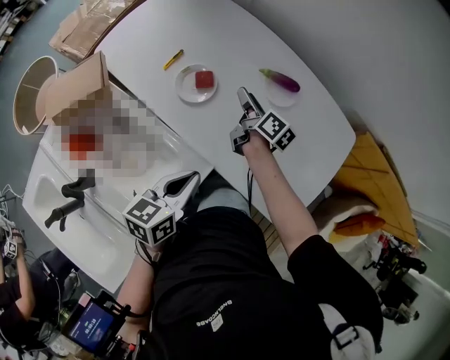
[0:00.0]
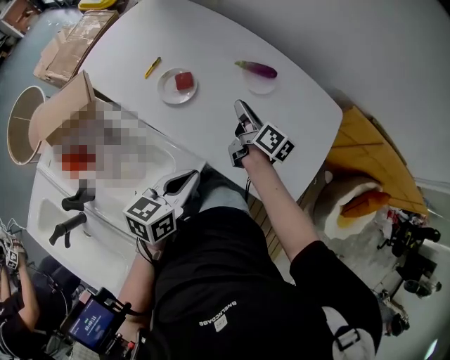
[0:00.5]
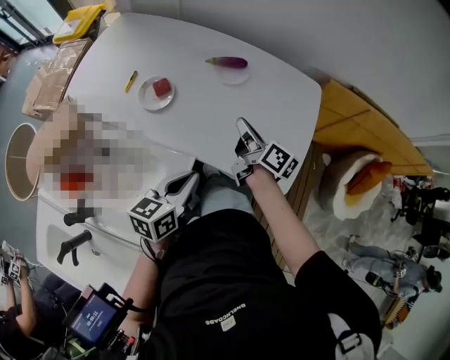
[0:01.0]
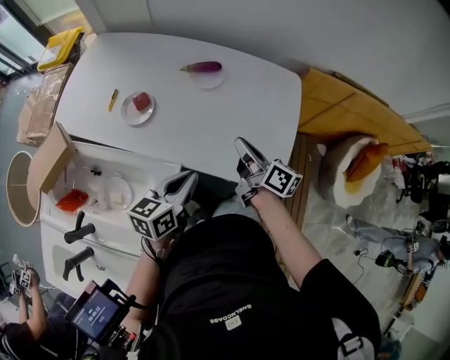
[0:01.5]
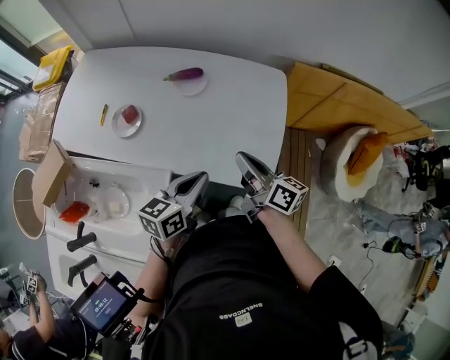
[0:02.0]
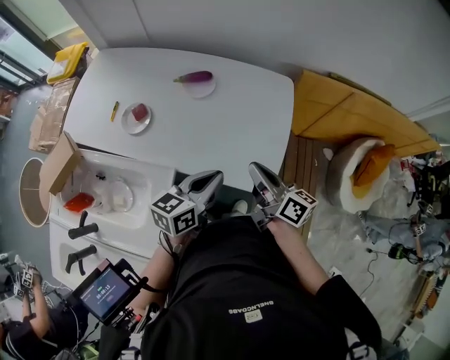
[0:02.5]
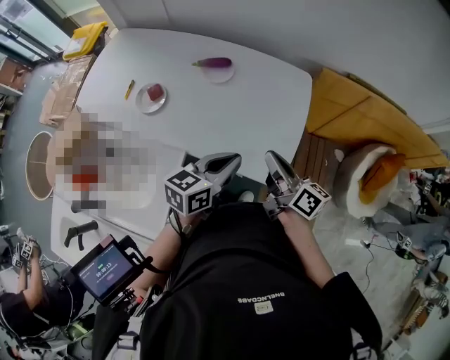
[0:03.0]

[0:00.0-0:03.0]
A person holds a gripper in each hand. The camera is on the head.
0:00.0 to 0:01.5: The left gripper moves approximately 10 cm, and turns by some 20 degrees.
0:01.5 to 0:03.0: The left gripper changes place by some 15 cm.

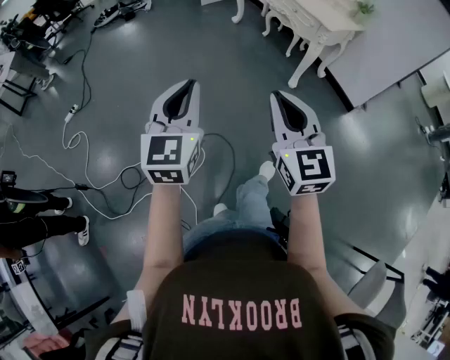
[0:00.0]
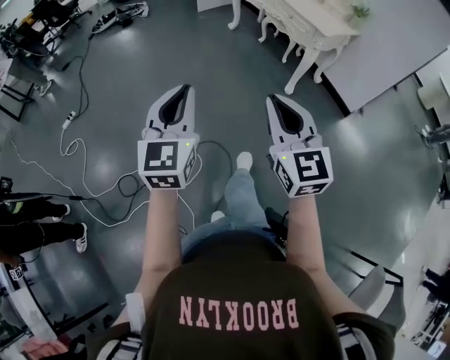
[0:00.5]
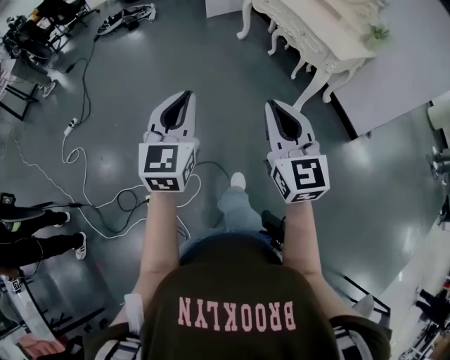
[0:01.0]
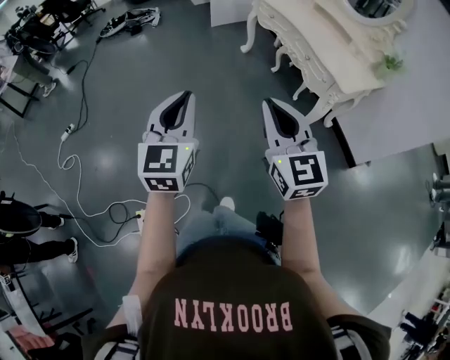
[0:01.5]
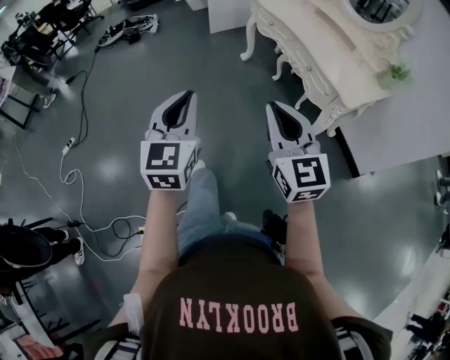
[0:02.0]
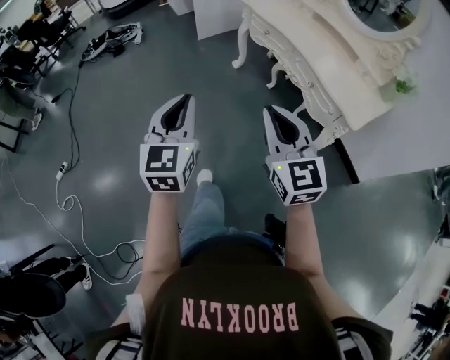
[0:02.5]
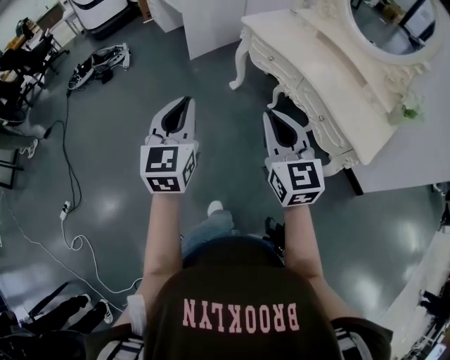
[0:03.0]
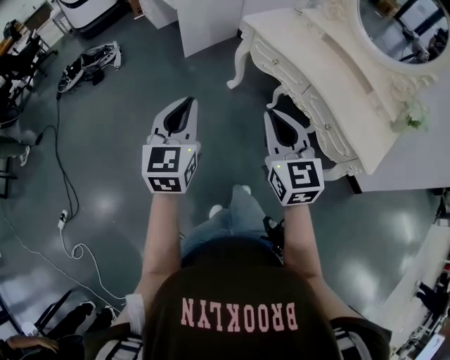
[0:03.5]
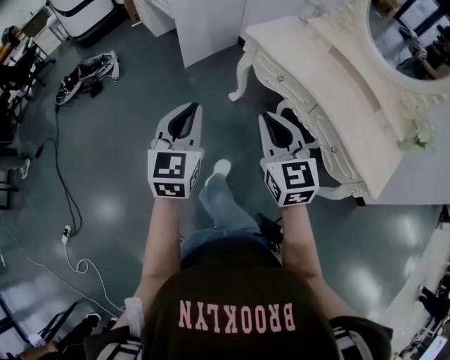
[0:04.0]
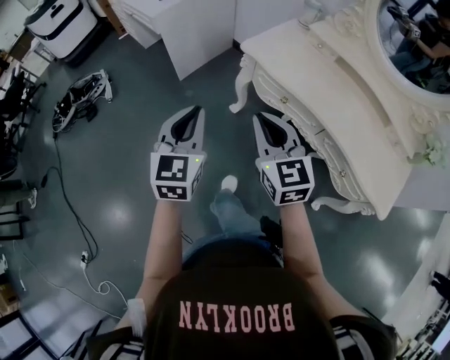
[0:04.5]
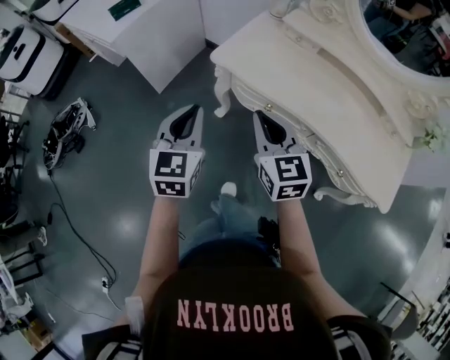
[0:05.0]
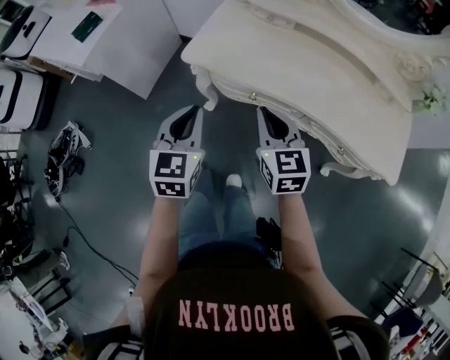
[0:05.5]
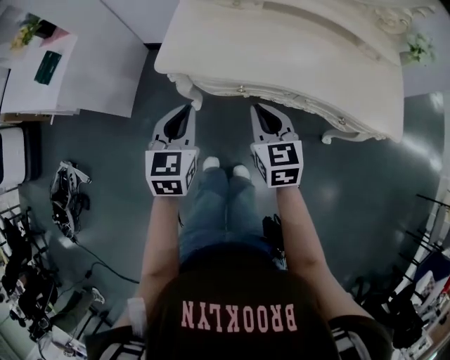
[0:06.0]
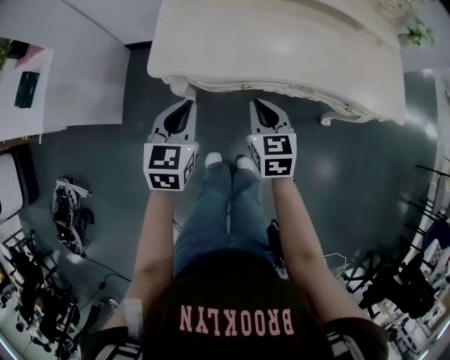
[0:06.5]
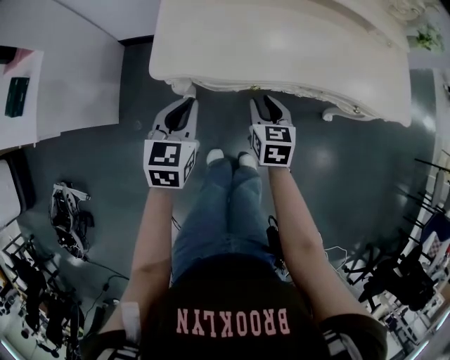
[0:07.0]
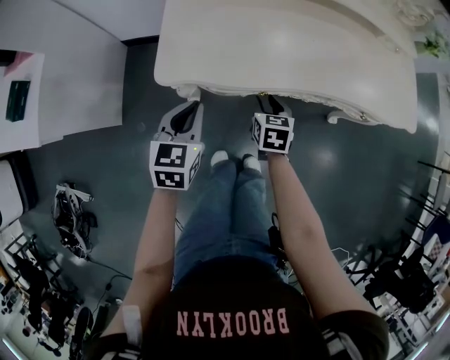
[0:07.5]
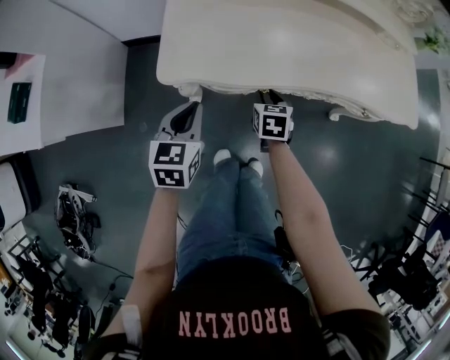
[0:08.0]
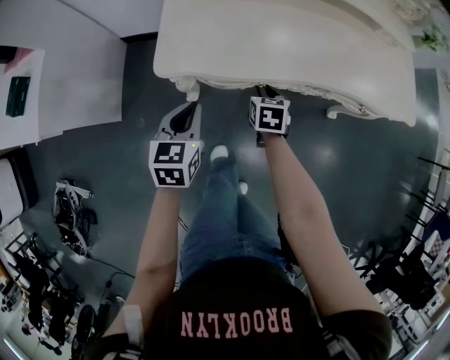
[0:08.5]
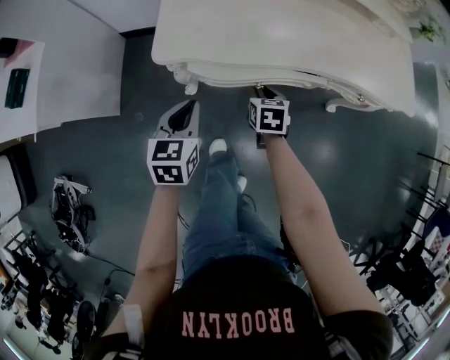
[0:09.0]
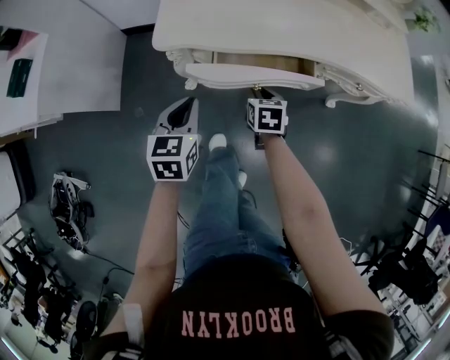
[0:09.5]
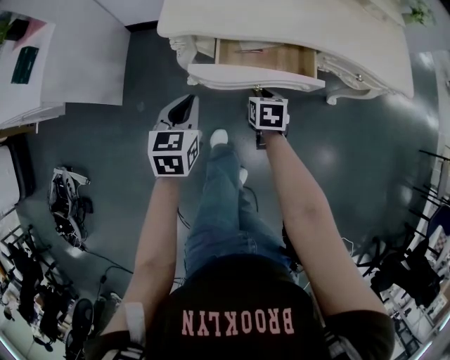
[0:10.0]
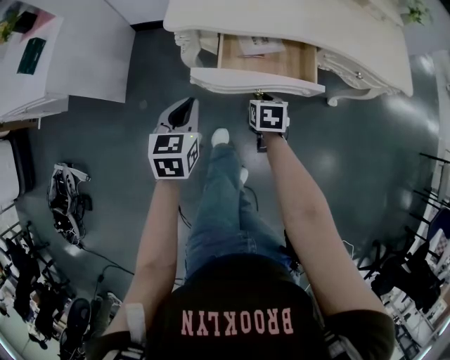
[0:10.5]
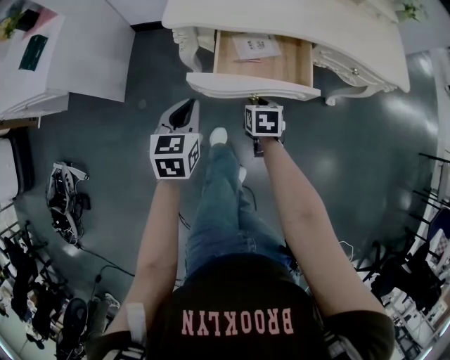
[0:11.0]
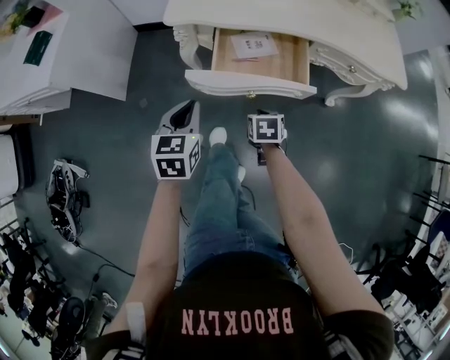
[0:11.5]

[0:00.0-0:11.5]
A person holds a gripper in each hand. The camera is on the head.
0:00.0 to 0:02.0: The two grippers travel together, forward, about 40 cm.
0:02.0 to 0:04.0: The two grippers travel together, forward, roughly 60 cm.
0:04.0 to 0:06.0: The left gripper changes place by some 40 cm, and turns by some 40 degrees. The right gripper ends up some 35 cm from where it was, and turns by some 50 degrees.
0:06.0 to 0:07.5: The left gripper shifts roughly 15 cm downward, forward and to the left. Meanwhile the right gripper is displaced downward and forward by roughly 20 cm, turns by approximately 30 degrees, and opens its fingers.
0:07.5 to 0:09.5: Both grippers travel together backward, about 10 cm.
0:09.5 to 0:11.5: Both grippers travel together backward, roughly 15 cm. The right gripper closes its fingers.

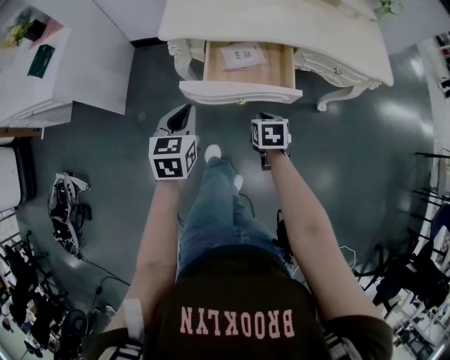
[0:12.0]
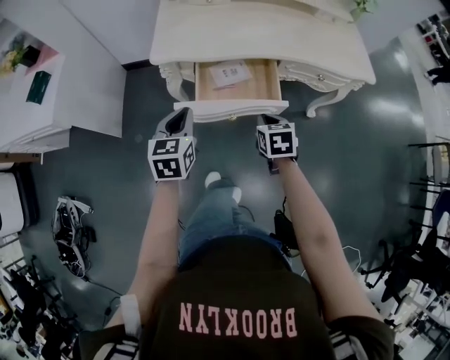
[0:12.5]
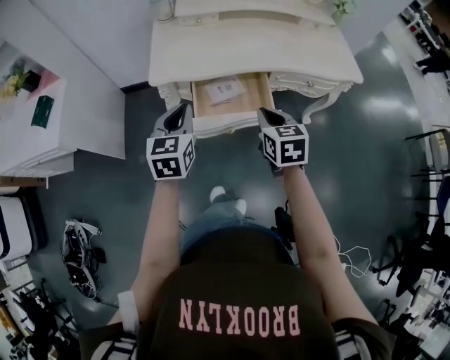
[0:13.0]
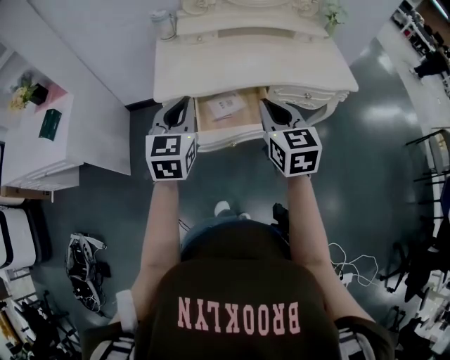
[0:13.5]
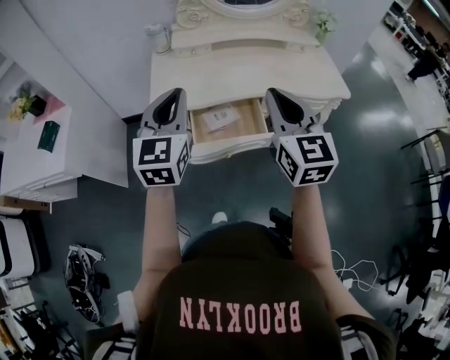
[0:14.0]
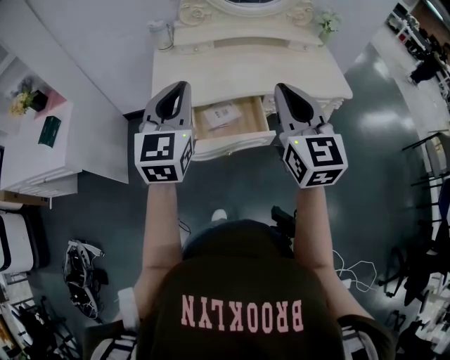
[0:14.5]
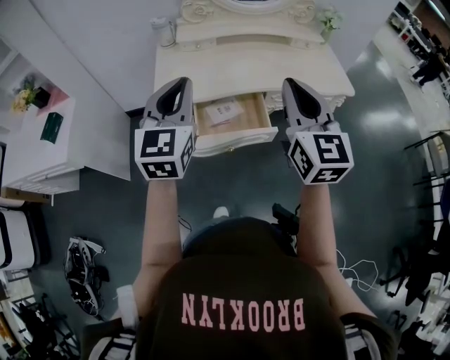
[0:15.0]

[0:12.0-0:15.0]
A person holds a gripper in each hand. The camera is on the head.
0:12.0 to 0:13.5: The left gripper is displaced upward and forward by approximately 20 cm, and turns by some 20 degrees. The right gripper heads upward, covering some 30 cm, and angles its fingers upward, by roughly 40 degrees.
0:13.5 to 0:15.0: The two grippers go approximately 10 cm upward. The right gripper rotates about 20 degrees.

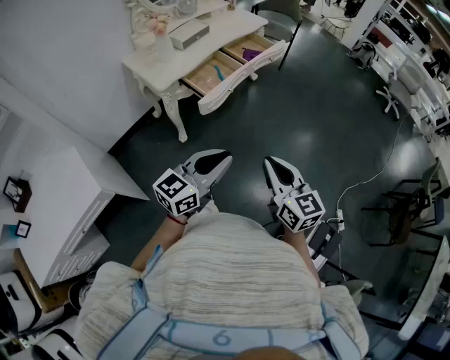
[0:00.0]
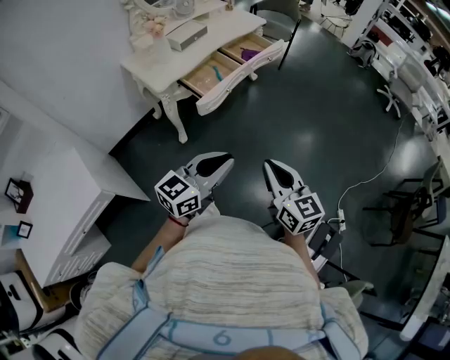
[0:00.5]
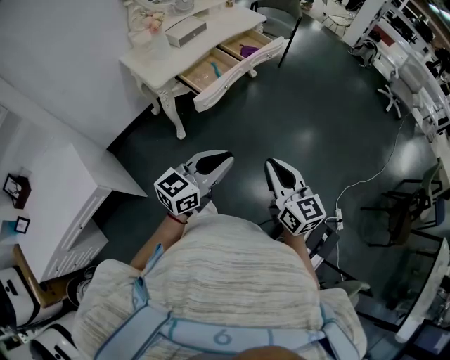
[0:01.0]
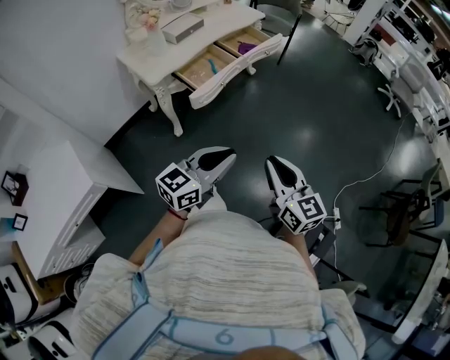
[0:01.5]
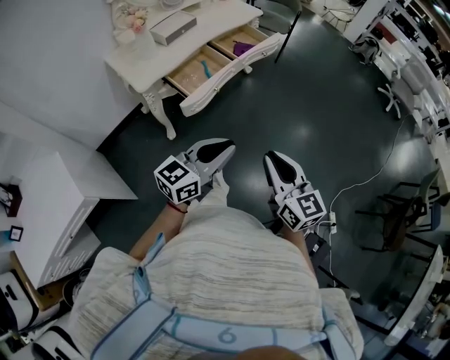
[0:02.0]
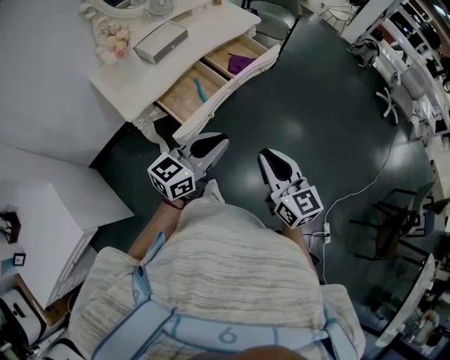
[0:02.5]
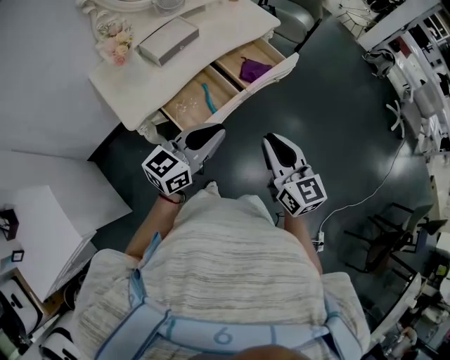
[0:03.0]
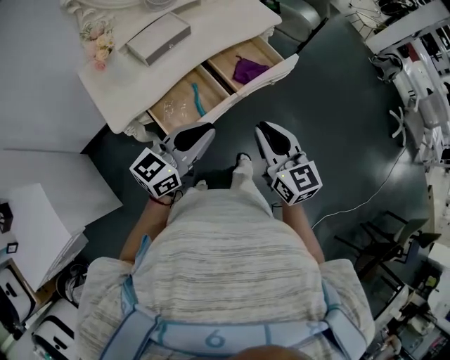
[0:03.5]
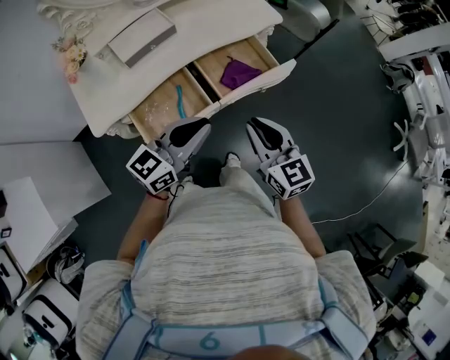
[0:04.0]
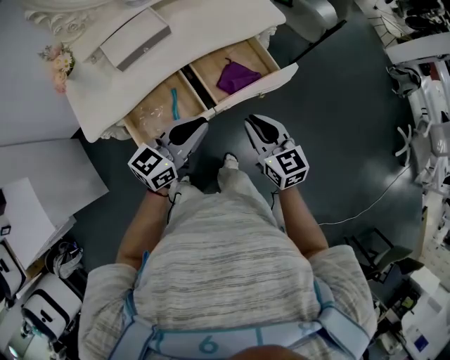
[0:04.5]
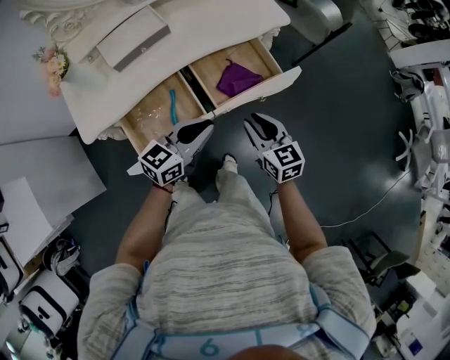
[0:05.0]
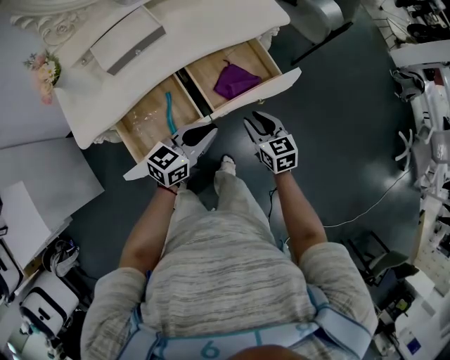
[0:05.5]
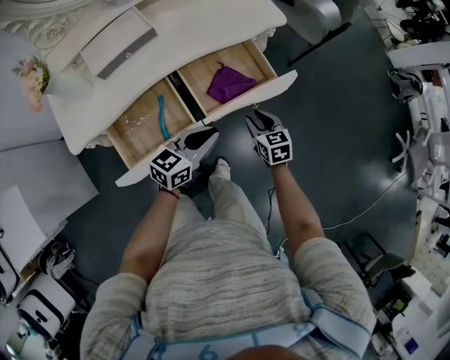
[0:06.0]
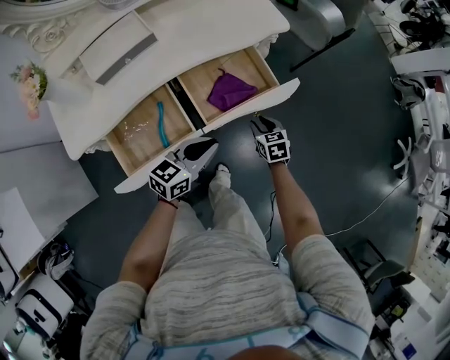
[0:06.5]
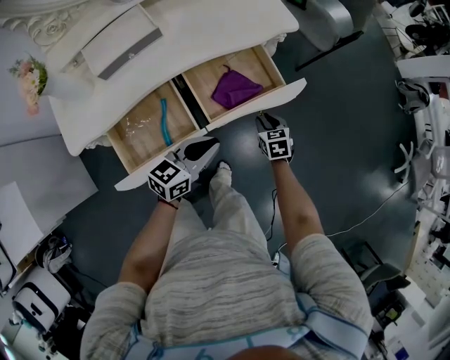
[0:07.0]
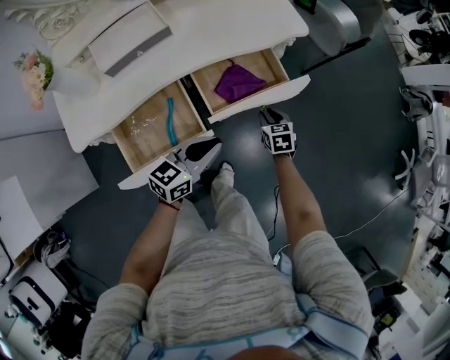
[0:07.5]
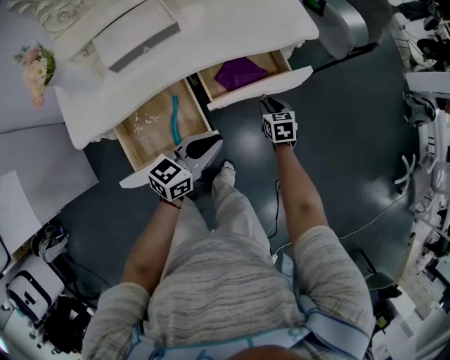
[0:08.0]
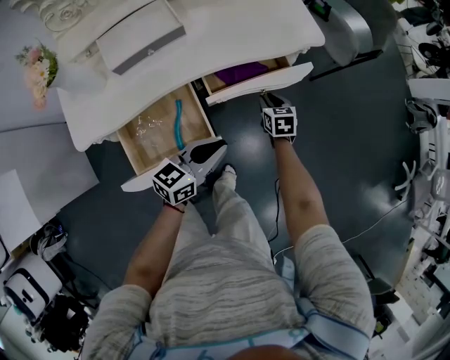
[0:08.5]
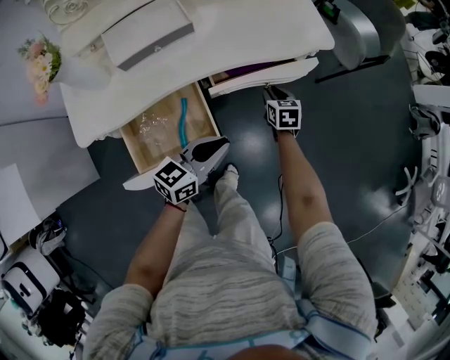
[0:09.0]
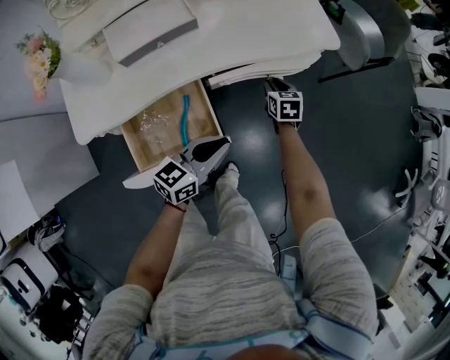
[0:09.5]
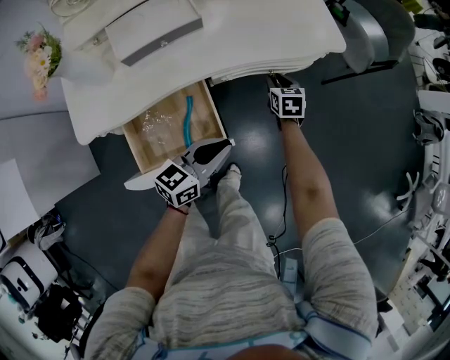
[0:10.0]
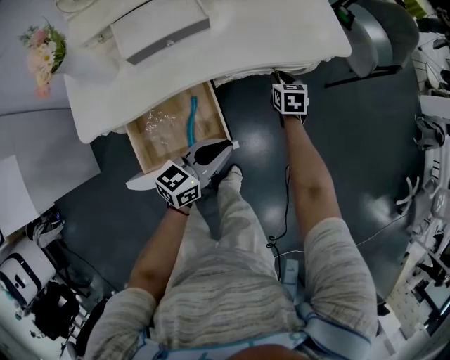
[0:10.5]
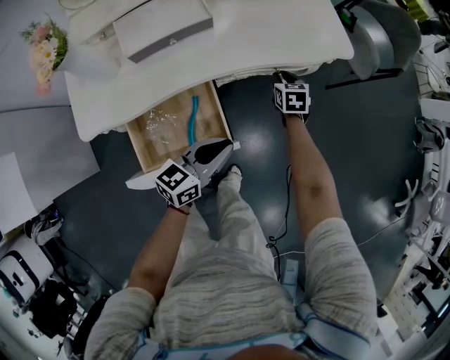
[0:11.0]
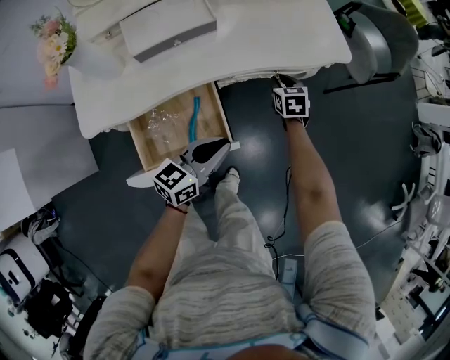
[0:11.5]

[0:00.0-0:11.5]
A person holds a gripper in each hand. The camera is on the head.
0:00.0 to 0:02.0: The grippers both shift forward and to the right by some 15 cm.
0:02.0 to 0:04.0: The two grippers travel together, forward, approximately 50 cm. The right gripper turns by some 20 degrees.
0:04.0 to 0:06.0: The right gripper travels downward and forward by some 30 cm, rotates approximately 30 degrees, and opens its fingers, while the left gripper travels downward, forward and to the right by roughly 20 cm.
0:06.0 to 0:07.5: The right gripper travels downward and forward by about 10 cm.
0:07.5 to 0:09.5: The right gripper moves forward and to the left, roughly 15 cm.
0:09.5 to 0:11.5: The grippers stay close to where they were, moving slightly.
